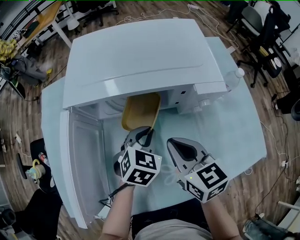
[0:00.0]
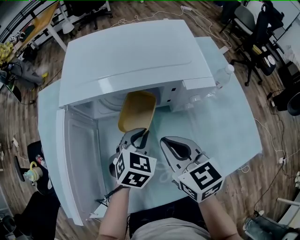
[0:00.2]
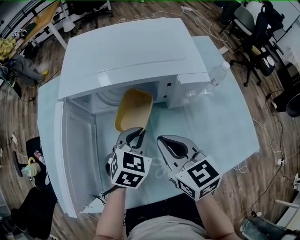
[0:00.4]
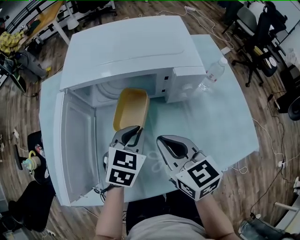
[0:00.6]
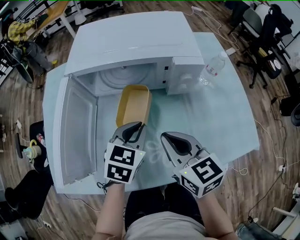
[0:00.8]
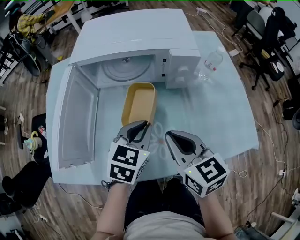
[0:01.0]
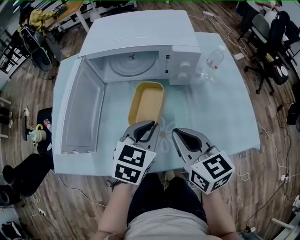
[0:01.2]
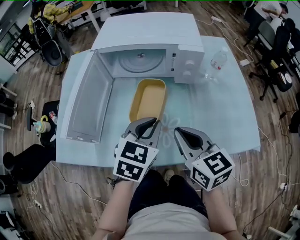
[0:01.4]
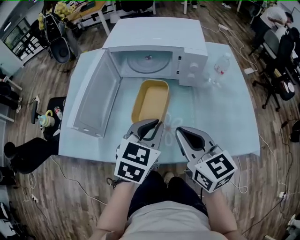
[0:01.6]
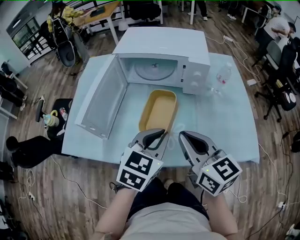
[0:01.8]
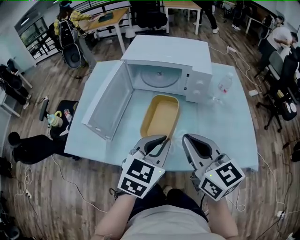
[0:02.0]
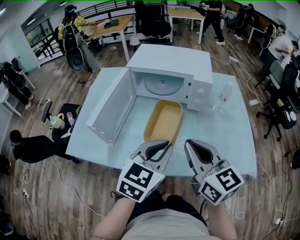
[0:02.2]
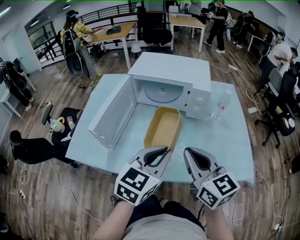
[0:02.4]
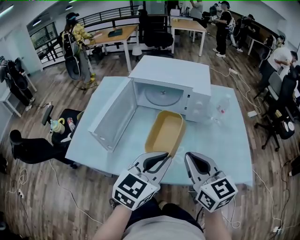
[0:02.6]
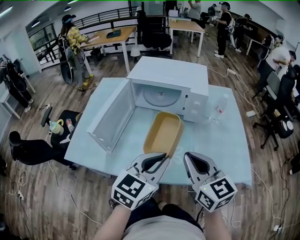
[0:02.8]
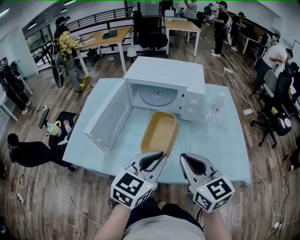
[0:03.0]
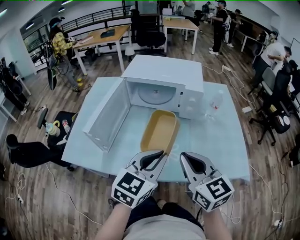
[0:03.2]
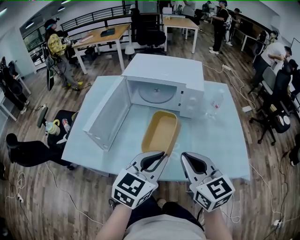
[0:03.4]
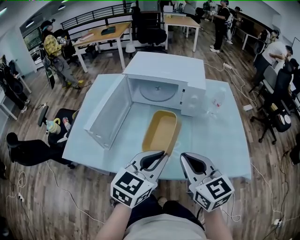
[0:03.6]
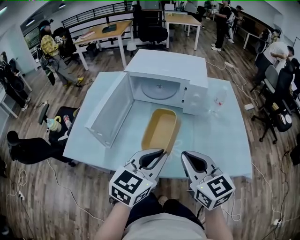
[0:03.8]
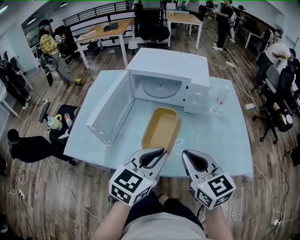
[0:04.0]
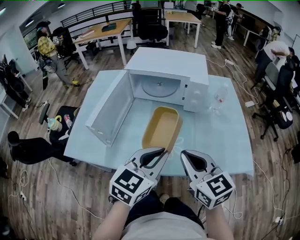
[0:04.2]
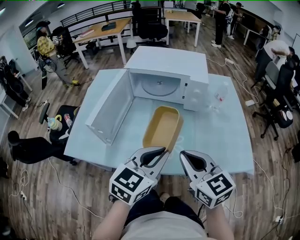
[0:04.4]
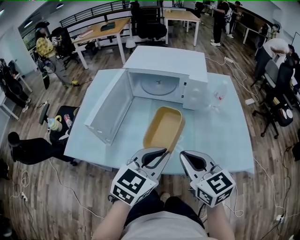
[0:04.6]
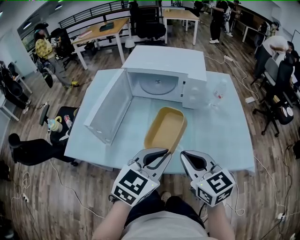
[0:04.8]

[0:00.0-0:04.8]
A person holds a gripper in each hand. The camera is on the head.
0:00.0 to 0:01.6: The left gripper shifts about 25 cm backward and upward, and changes its angle by some 20 degrees; the right gripper heads backward, covering about 20 cm.
0:01.6 to 0:03.2: The grippers both shift backward and upward by roughly 10 cm.
0:03.2 to 0:04.8: The grippers stay close to where they were, moving slightly.

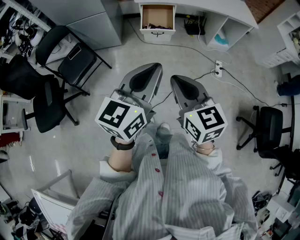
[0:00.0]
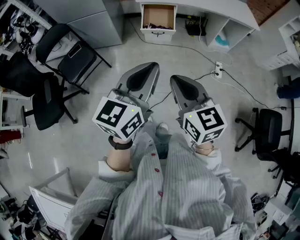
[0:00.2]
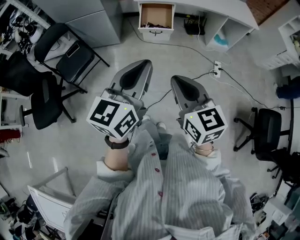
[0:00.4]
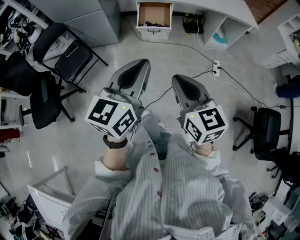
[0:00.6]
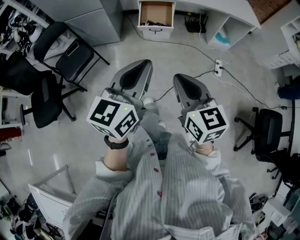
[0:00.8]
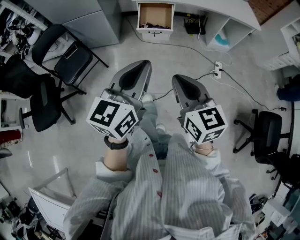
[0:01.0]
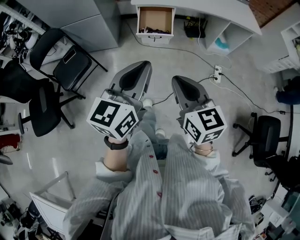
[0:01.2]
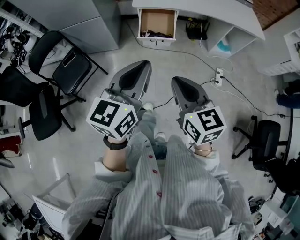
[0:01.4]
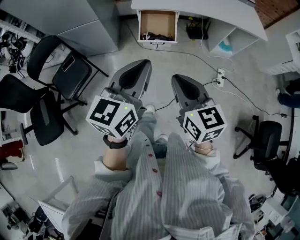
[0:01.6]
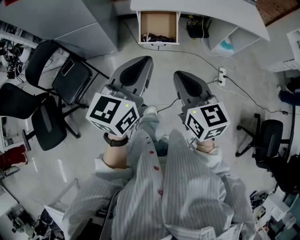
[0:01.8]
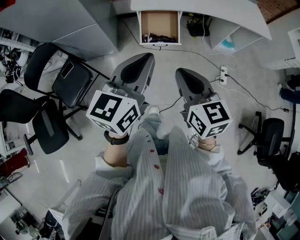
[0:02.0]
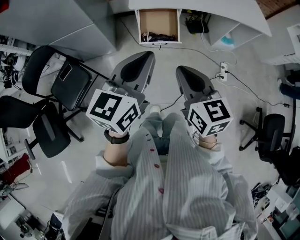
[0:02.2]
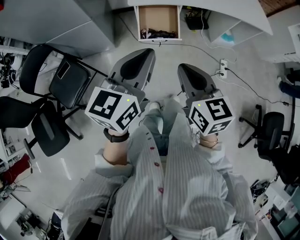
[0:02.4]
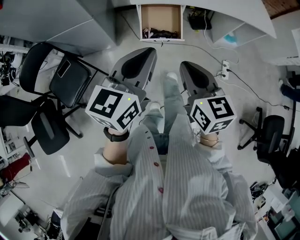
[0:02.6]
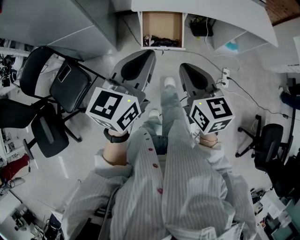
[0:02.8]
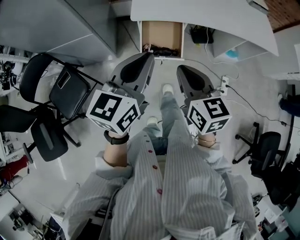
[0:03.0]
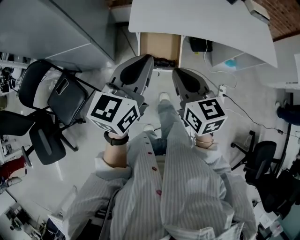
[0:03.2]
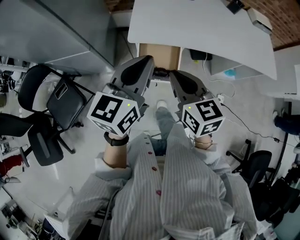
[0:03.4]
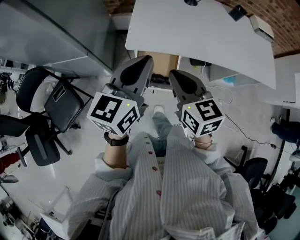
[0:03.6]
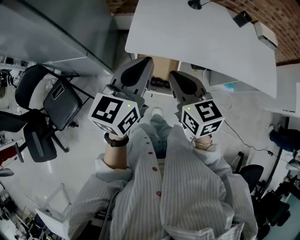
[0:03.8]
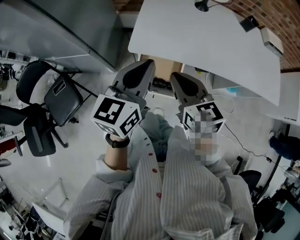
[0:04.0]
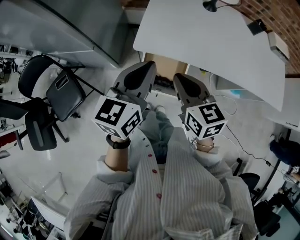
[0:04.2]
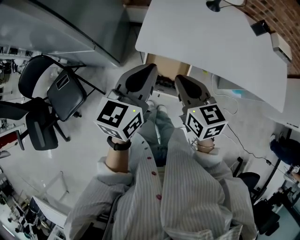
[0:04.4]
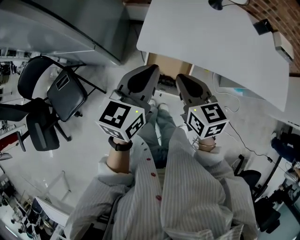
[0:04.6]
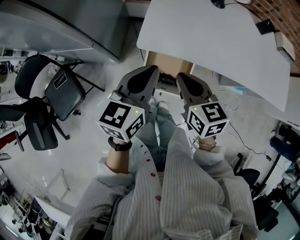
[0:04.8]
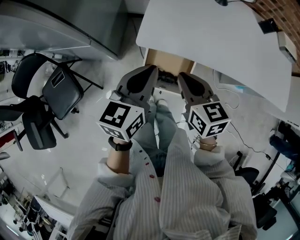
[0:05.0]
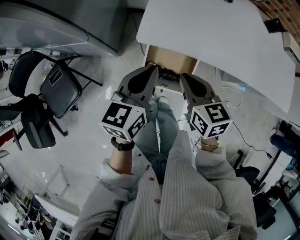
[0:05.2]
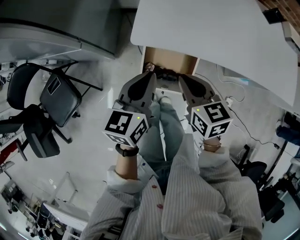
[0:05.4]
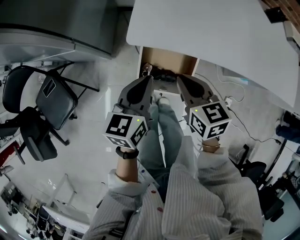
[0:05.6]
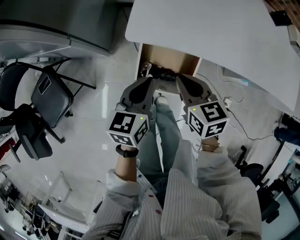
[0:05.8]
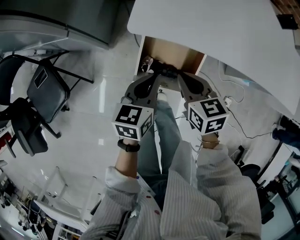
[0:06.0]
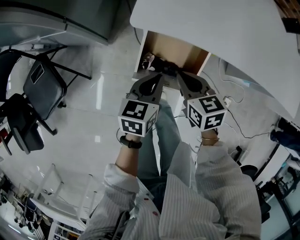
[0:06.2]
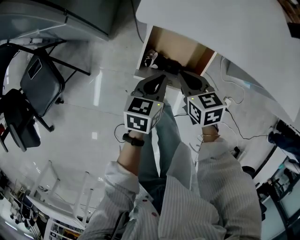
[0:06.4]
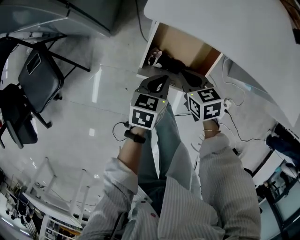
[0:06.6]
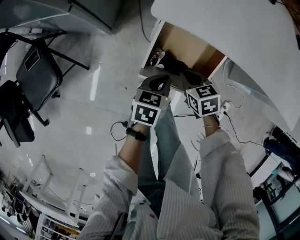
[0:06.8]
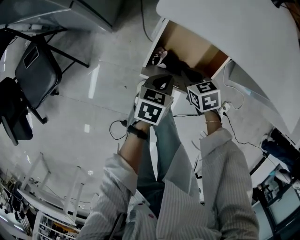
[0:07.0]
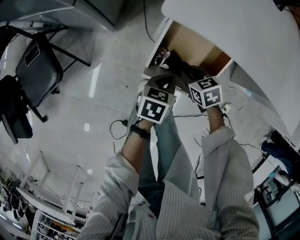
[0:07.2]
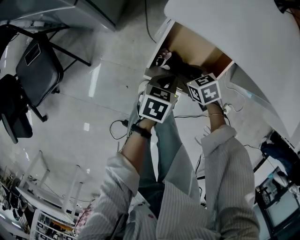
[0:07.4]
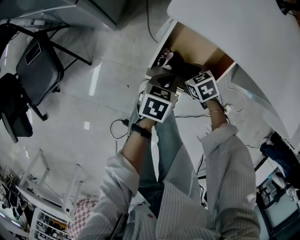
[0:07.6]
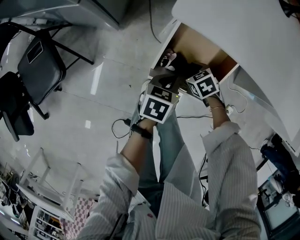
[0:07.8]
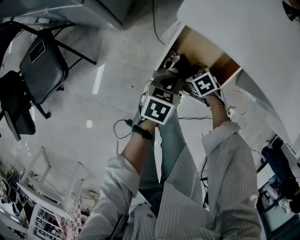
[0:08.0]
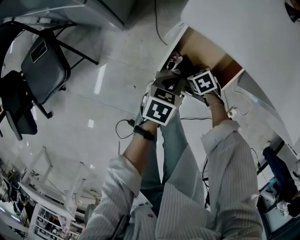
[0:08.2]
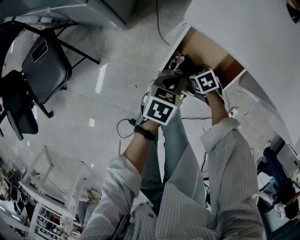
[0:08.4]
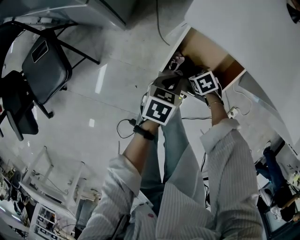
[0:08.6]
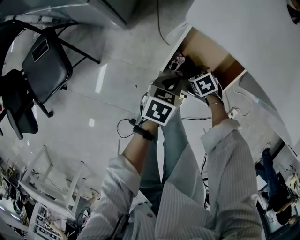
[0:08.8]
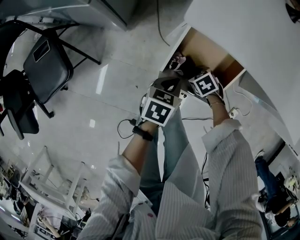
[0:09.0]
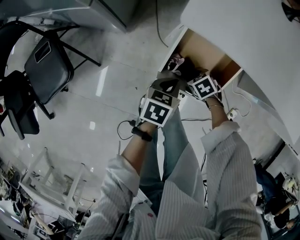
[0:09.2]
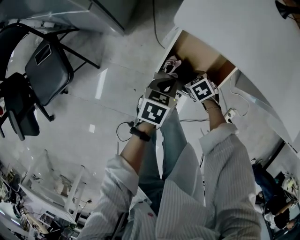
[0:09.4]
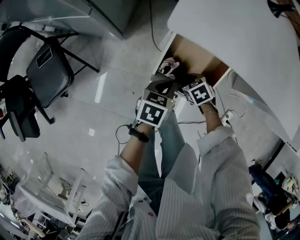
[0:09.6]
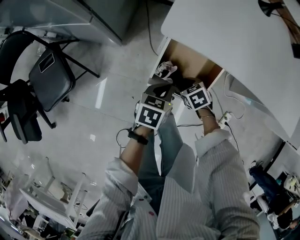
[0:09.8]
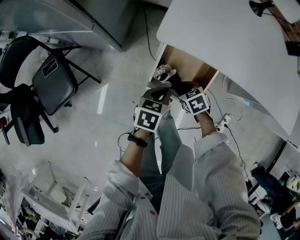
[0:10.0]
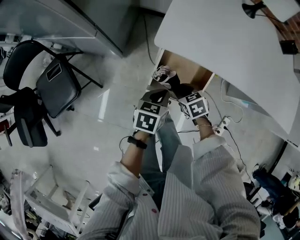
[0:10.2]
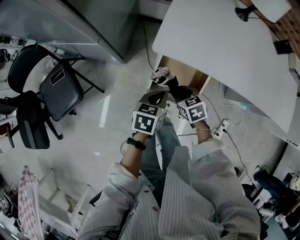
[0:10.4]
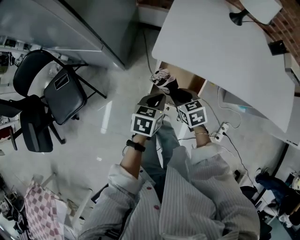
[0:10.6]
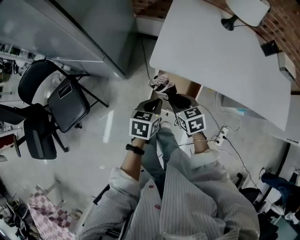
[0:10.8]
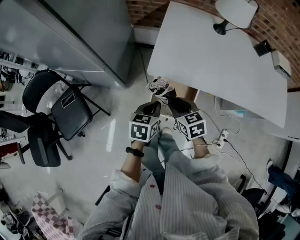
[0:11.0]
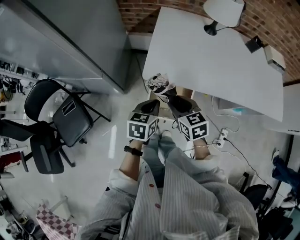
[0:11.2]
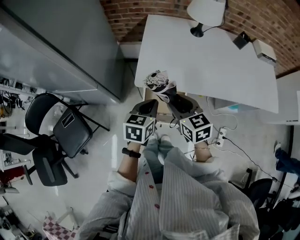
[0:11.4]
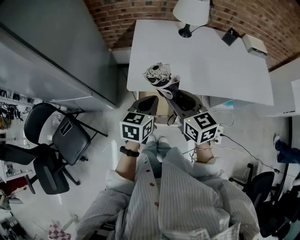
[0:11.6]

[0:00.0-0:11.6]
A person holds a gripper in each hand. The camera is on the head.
0:00.0 to 0:01.4: The grippers both shift forward by approximately 15 cm.
0:01.4 to 0:02.8: The two grippers go about 25 cm forward.
0:02.8 to 0:04.4: Both grippers travel together forward, roughly 30 cm.
0:04.4 to 0:05.8: The grippers both shift downward by roughly 20 cm.
0:05.8 to 0:07.2: The grippers both shift downward by some 20 cm. The right gripper swivels about 30 degrees. Meanwhile the left gripper changes its angle by approximately 20 degrees.
0:07.2 to 0:08.8: The right gripper heads downward, covering roughly 10 cm, turns by roughly 20 degrees, and opens up.
0:08.8 to 0:10.2: Both grippers travel together upward, some 15 cm. The right gripper turns by roughly 20 degrees.
0:10.2 to 0:11.6: The two grippers go approximately 30 cm upward. The left gripper turns by roughly 20 degrees. Meanwhile the right gripper points its fingers some 40 degrees further upward.

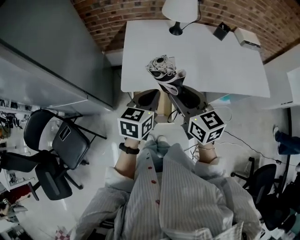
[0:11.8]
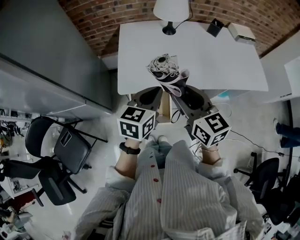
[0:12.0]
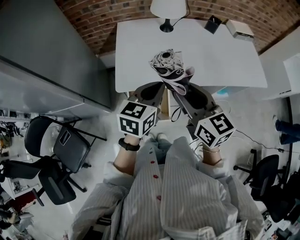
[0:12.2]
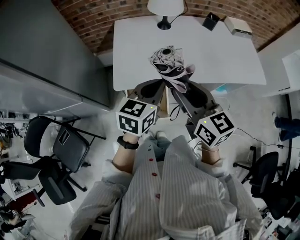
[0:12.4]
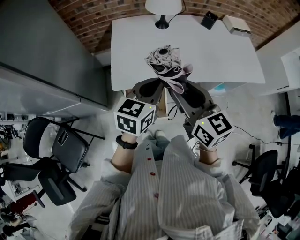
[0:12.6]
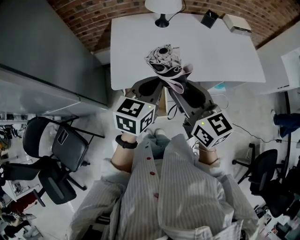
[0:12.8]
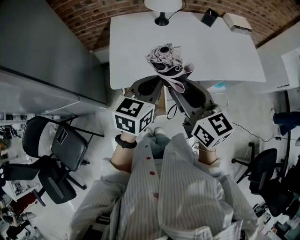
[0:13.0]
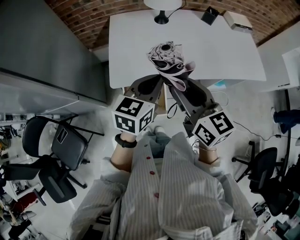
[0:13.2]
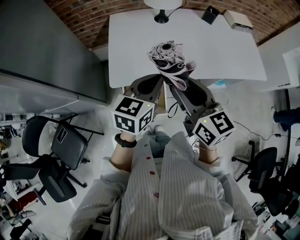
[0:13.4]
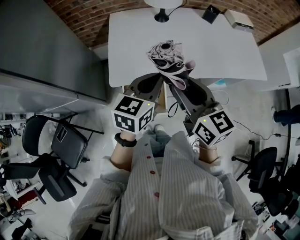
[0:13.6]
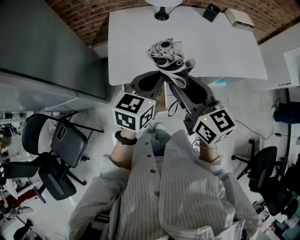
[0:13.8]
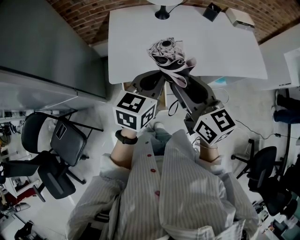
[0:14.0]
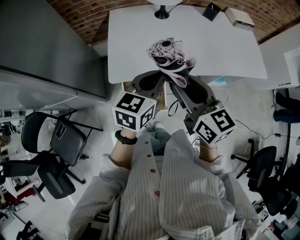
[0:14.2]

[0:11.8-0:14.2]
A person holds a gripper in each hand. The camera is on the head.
0:11.8 to 0:13.0: The left gripper is displaced to the right by some 5 cm, while the right gripper moves roughly 5 cm.
0:13.0 to 0:14.2: The grippers stay close to where they were, moving slightly.

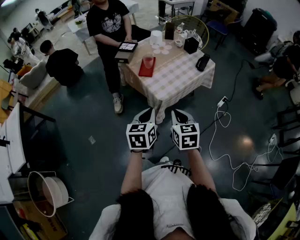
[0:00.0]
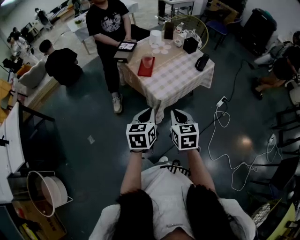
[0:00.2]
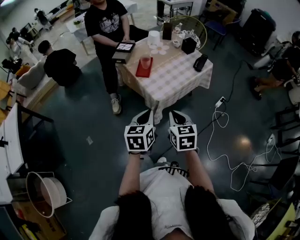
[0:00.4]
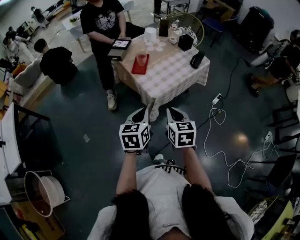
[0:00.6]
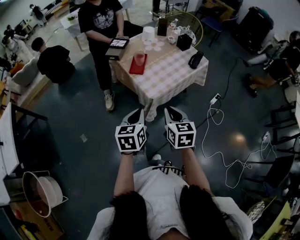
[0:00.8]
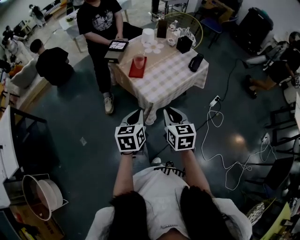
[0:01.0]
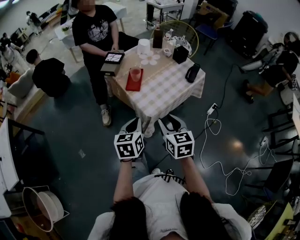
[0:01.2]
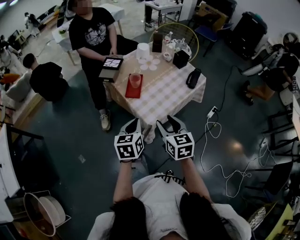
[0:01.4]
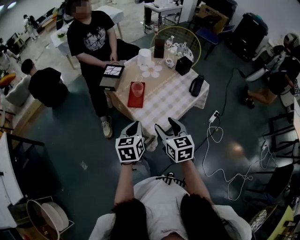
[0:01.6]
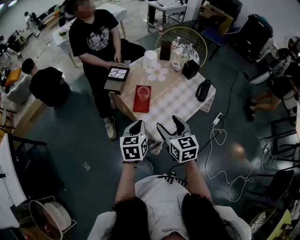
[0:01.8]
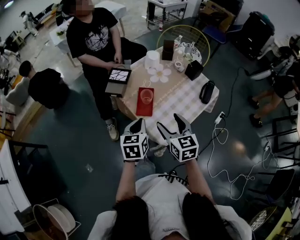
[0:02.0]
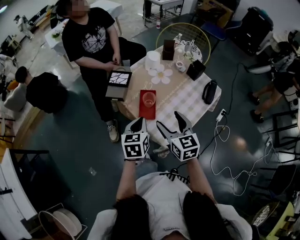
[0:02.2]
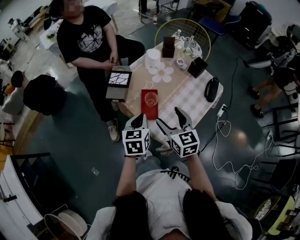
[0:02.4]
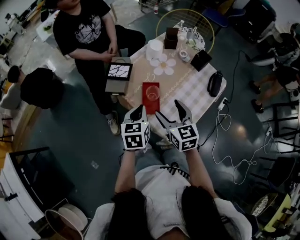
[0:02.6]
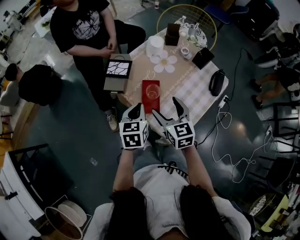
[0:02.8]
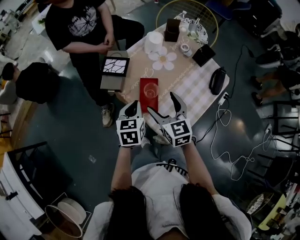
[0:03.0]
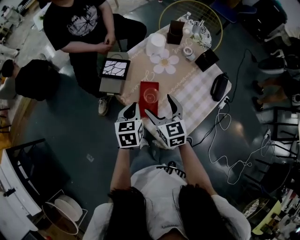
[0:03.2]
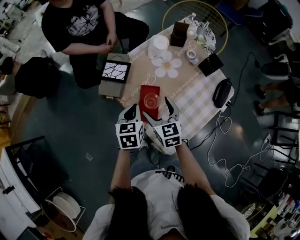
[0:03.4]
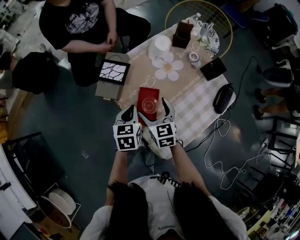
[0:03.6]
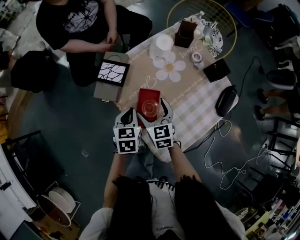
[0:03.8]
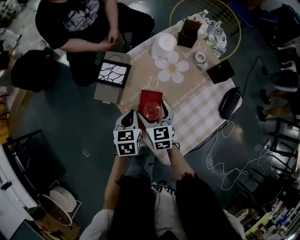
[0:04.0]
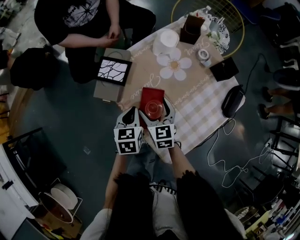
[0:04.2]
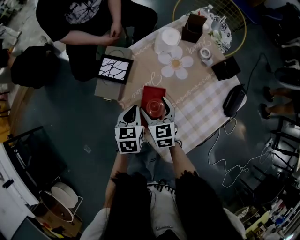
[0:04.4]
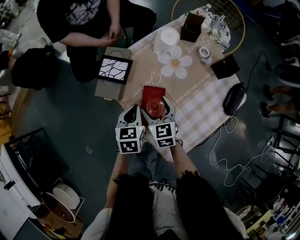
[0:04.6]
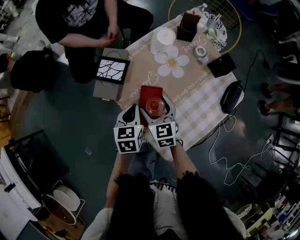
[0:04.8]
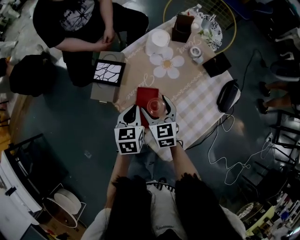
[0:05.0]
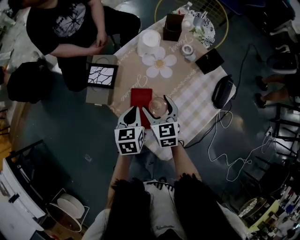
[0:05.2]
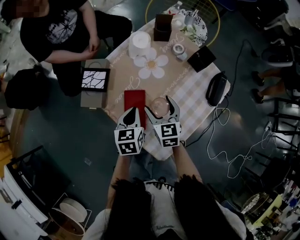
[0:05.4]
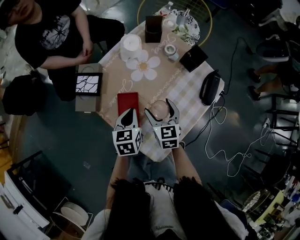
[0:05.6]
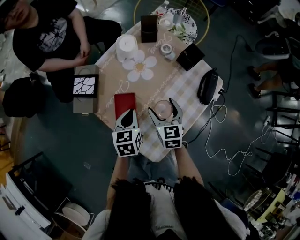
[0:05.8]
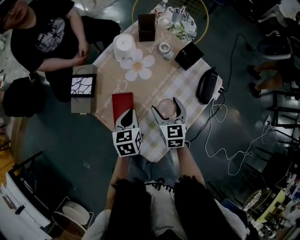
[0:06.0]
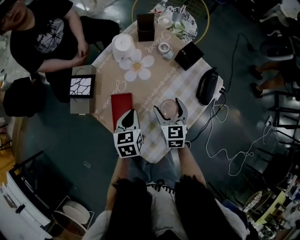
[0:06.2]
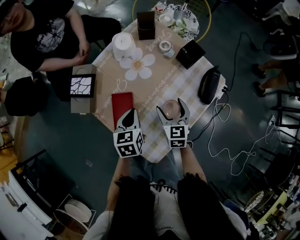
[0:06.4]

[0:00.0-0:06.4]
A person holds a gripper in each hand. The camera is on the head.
0:00.0 to 0:01.6: Both grippers move forward, roughly 15 cm. The right gripper opens.
0:01.6 to 0:03.2: The left gripper moves forward, roughly 25 cm. Meanwhile the right gripper goes approximately 25 cm forward and to the left, and opens.
0:03.2 to 0:04.8: The right gripper shifts about 10 cm downward and forward, while the left gripper shifts approximately 5 cm downward.
0:04.8 to 0:06.4: The right gripper travels to the right by some 20 cm. The left gripper is displaced to the right by about 10 cm.
